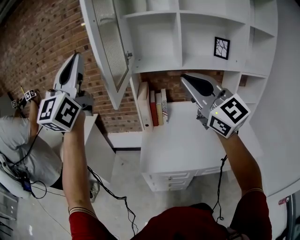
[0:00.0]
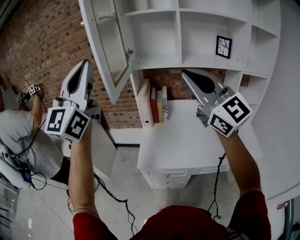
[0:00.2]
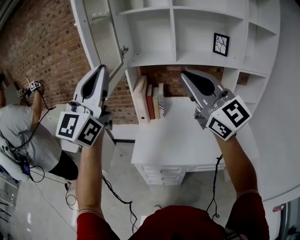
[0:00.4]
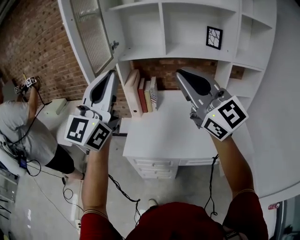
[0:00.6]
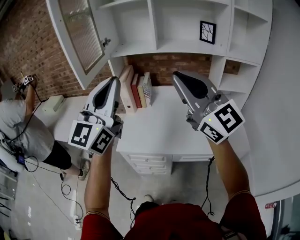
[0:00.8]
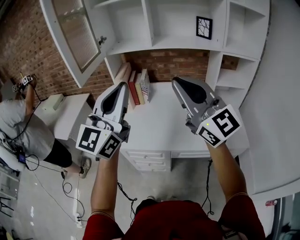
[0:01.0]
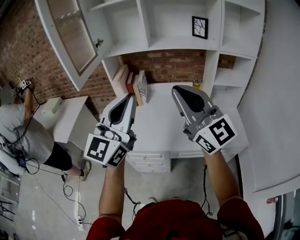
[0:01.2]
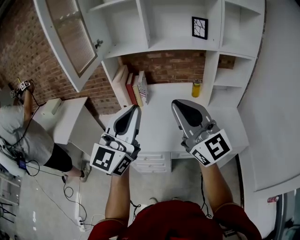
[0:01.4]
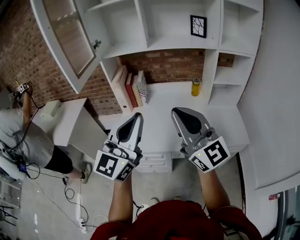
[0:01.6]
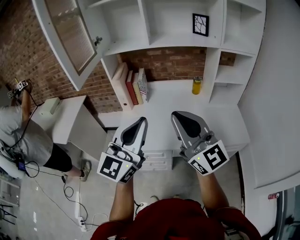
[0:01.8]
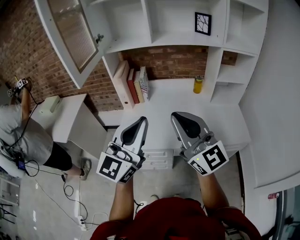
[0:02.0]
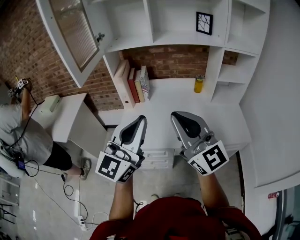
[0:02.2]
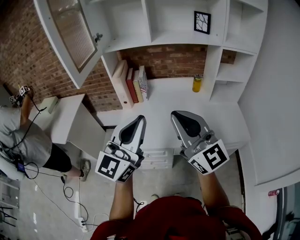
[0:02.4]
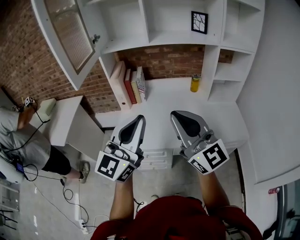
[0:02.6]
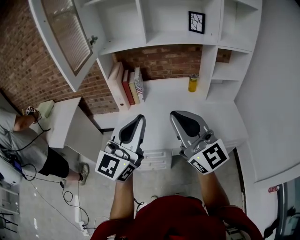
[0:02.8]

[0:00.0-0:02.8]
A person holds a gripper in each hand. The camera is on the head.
0:00.0 to 0:01.4: The right gripper travels to the right, backward and downward by approximately 20 cm. Meanwhile the left gripper heads to the right, downward and backward, covering about 40 cm, and turns by roughly 20 degrees.
0:01.4 to 0:02.8: The right gripper changes place by some 5 cm; the left gripper shifts by roughly 5 cm.

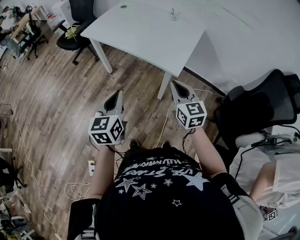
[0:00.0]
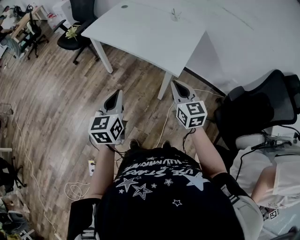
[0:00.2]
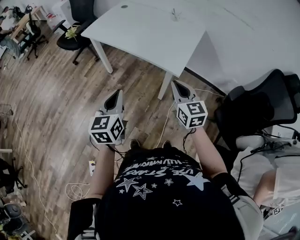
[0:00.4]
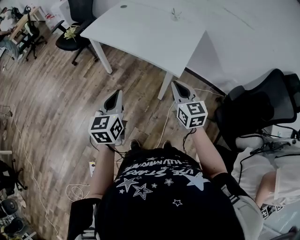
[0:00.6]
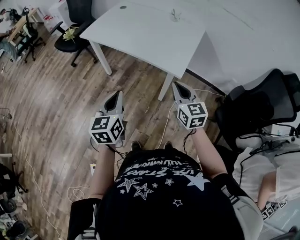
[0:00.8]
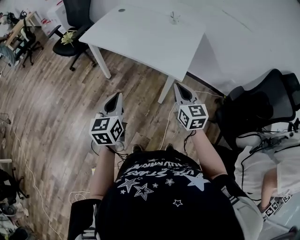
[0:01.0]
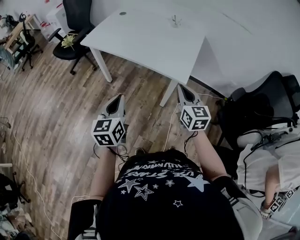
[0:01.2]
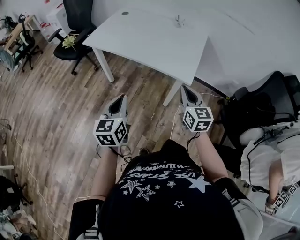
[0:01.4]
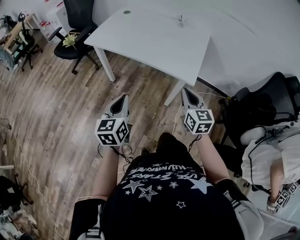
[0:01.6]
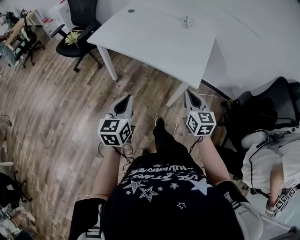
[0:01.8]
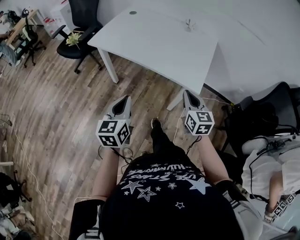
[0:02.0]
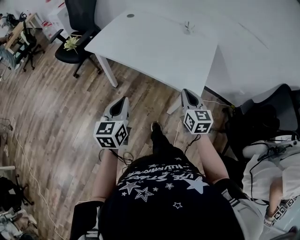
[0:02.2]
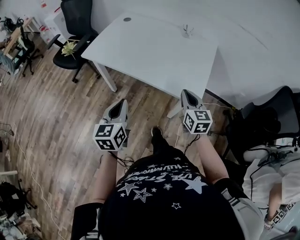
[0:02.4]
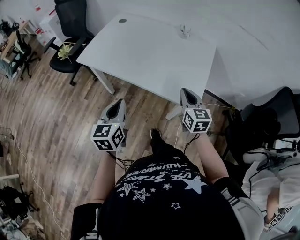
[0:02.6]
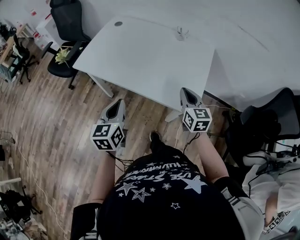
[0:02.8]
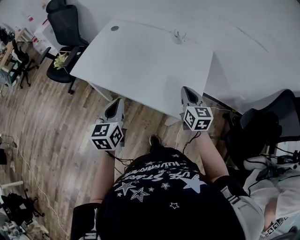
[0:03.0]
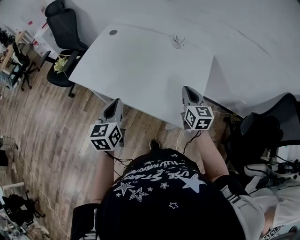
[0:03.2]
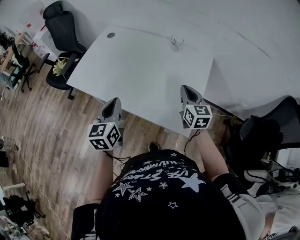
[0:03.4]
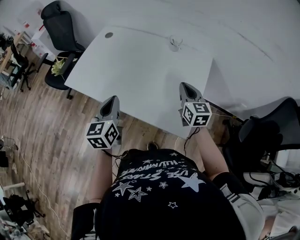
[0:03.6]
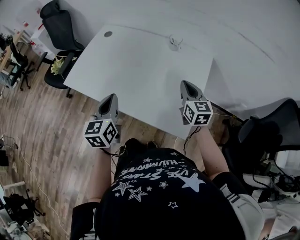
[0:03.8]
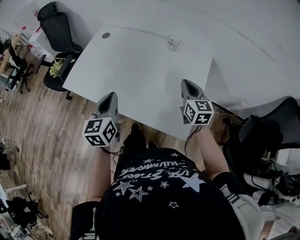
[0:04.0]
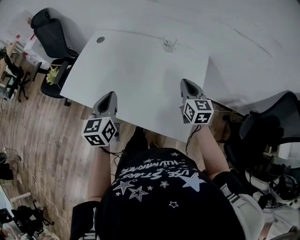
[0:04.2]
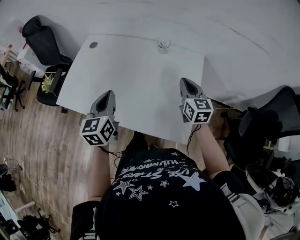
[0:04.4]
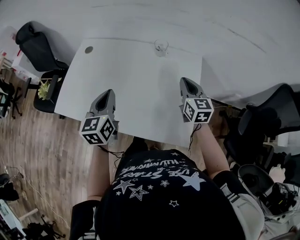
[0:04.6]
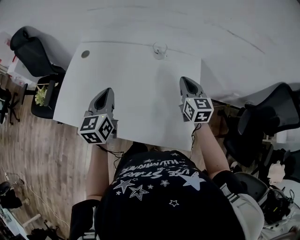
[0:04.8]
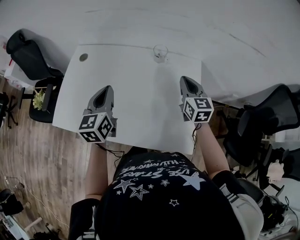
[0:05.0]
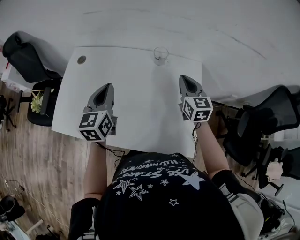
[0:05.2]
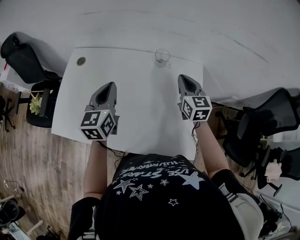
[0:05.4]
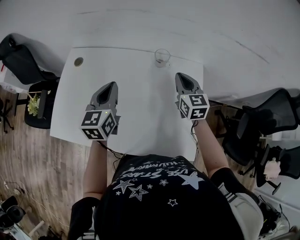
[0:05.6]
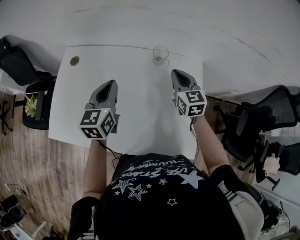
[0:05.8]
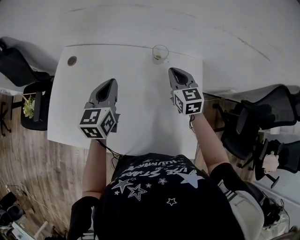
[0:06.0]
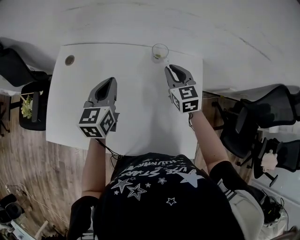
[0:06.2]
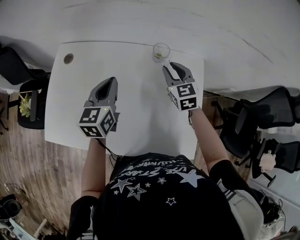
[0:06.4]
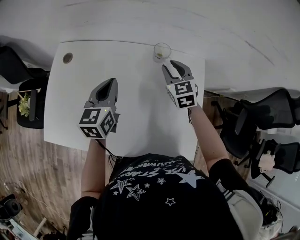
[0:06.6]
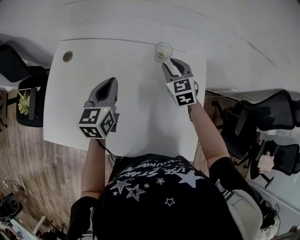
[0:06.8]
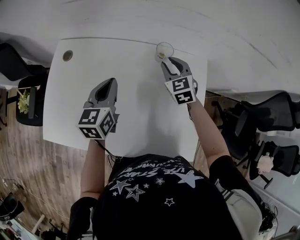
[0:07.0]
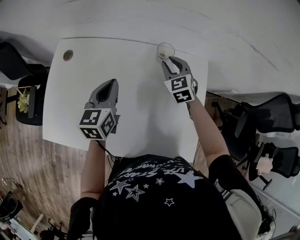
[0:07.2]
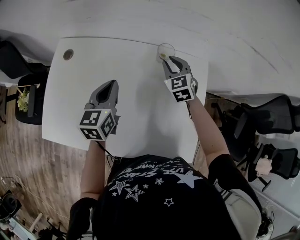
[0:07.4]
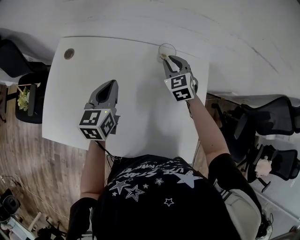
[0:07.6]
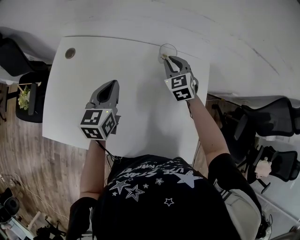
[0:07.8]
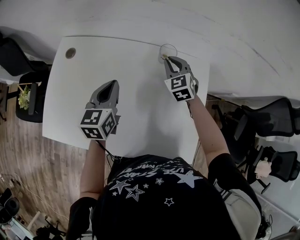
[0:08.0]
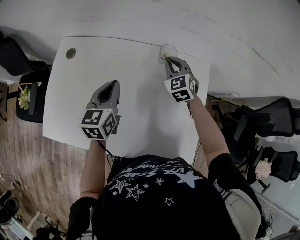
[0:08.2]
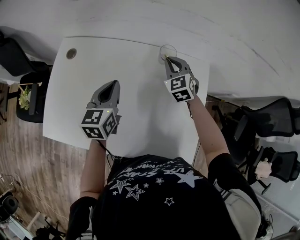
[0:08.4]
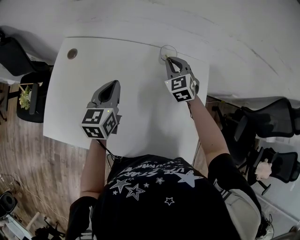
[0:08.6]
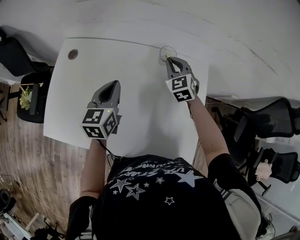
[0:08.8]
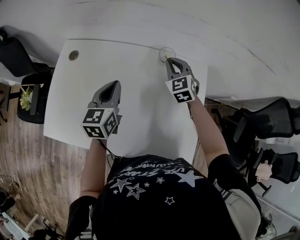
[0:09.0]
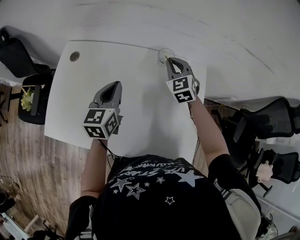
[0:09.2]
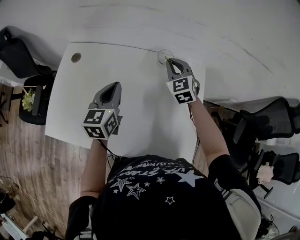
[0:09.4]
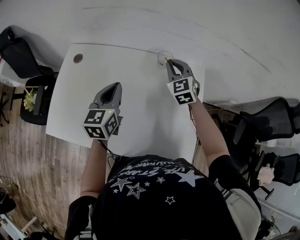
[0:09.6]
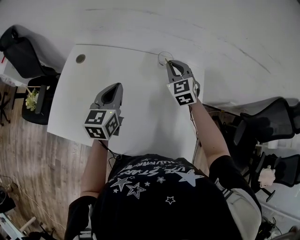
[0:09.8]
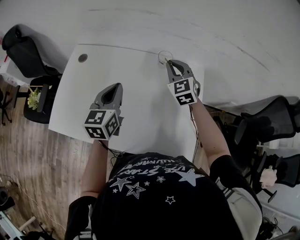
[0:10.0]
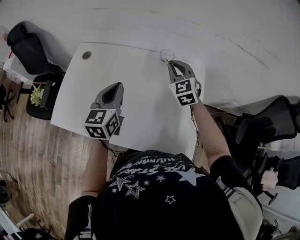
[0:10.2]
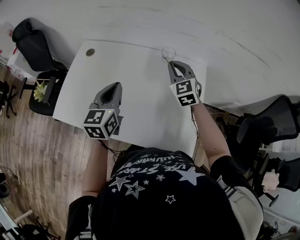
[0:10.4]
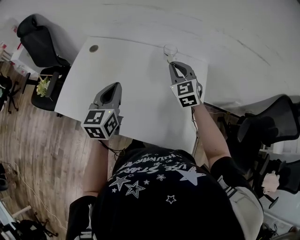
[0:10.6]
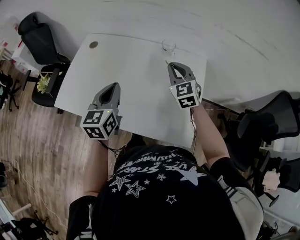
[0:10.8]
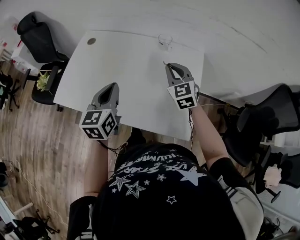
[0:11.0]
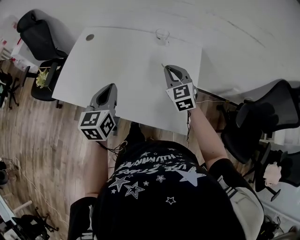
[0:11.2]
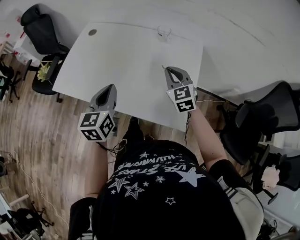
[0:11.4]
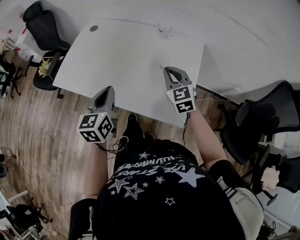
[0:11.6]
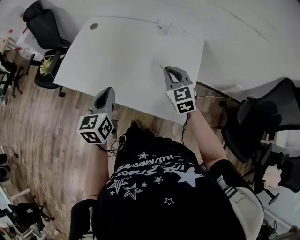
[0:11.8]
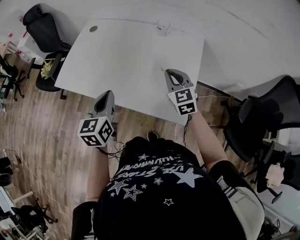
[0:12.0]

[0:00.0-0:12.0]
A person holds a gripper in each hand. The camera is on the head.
0:00.0 to 0:01.6: The right gripper travels to the left by some 5 cm. Meanwhile the left gripper moves to the left and forward, some 10 cm.
0:01.6 to 0:03.0: Both grippers travel together forward, roughly 25 cm.
0:03.0 to 0:04.4: The left gripper travels forward by some 20 cm, while the right gripper goes roughly 15 cm forward and to the right.
0:04.4 to 0:06.0: The right gripper moves forward and to the left, about 20 cm. Meanwhile the left gripper goes some 20 cm forward.
0:06.0 to 0:07.6: The right gripper moves forward and downward, roughly 10 cm, and rotates roughly 20 degrees, while the left gripper changes place by roughly 5 cm.
0:07.6 to 0:09.0: The grippers move only a little.
0:09.0 to 0:10.4: Both grippers move backward and upward, roughly 15 cm.
0:10.4 to 0:12.0: The grippers both shift backward by some 20 cm.

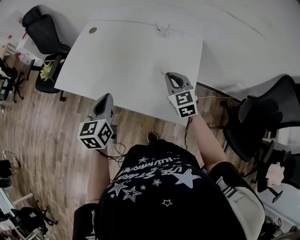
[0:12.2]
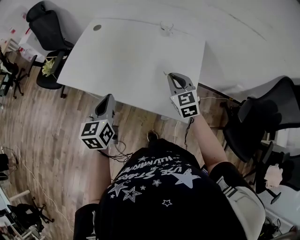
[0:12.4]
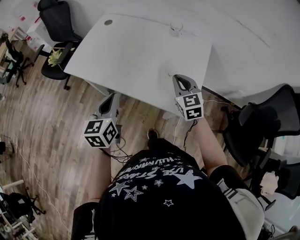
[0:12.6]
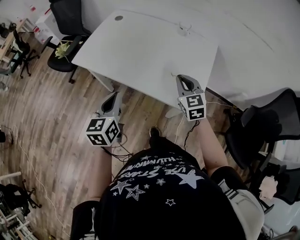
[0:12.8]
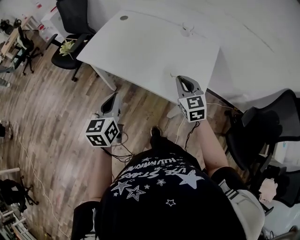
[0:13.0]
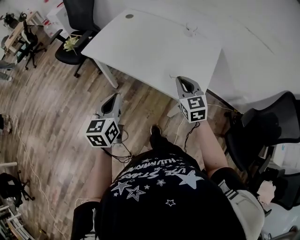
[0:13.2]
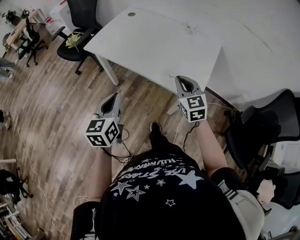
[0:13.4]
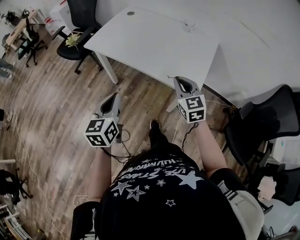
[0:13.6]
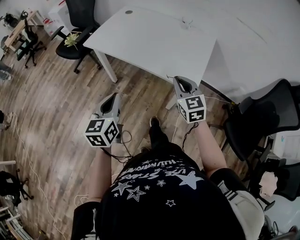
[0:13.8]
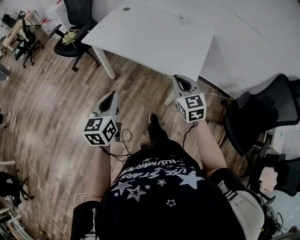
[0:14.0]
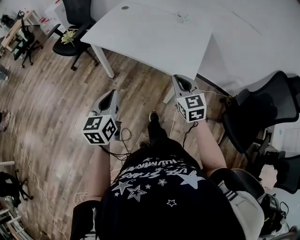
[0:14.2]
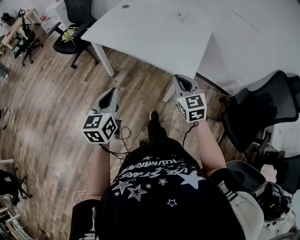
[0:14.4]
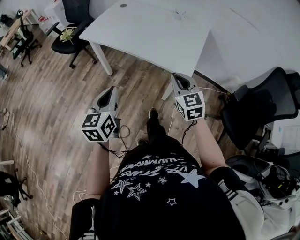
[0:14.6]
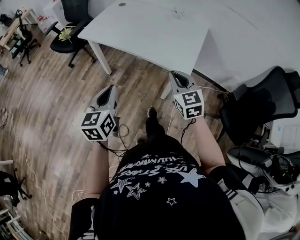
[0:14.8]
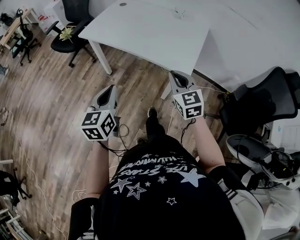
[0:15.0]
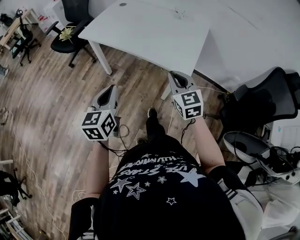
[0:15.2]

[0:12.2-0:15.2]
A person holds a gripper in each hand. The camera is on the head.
0:12.2 to 0:13.8: Both grippers move backward, about 25 cm.
0:13.8 to 0:15.2: Both grippers travel together backward, some 5 cm.

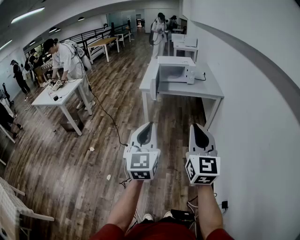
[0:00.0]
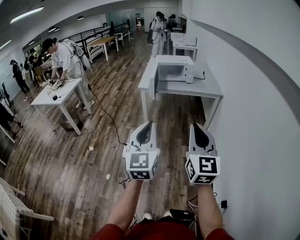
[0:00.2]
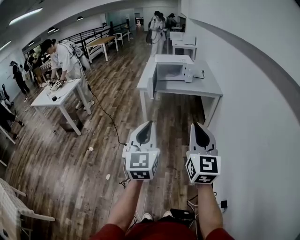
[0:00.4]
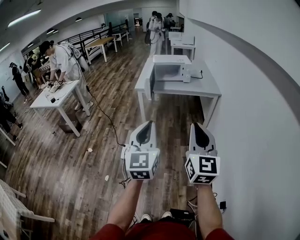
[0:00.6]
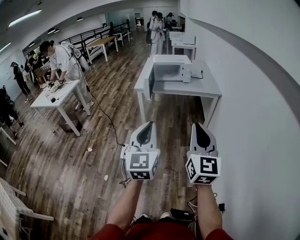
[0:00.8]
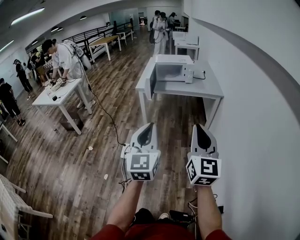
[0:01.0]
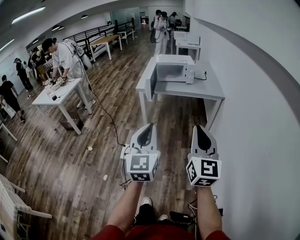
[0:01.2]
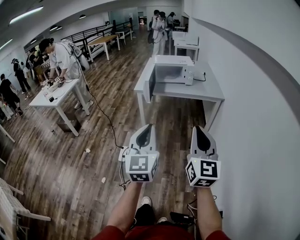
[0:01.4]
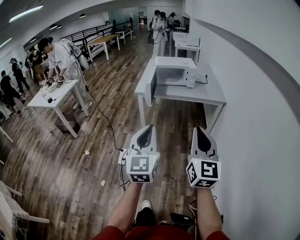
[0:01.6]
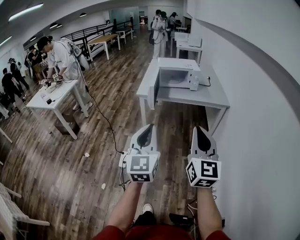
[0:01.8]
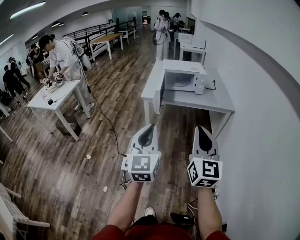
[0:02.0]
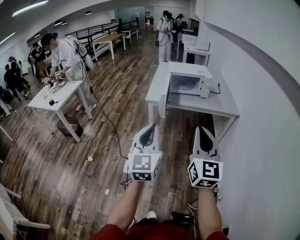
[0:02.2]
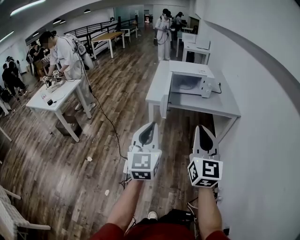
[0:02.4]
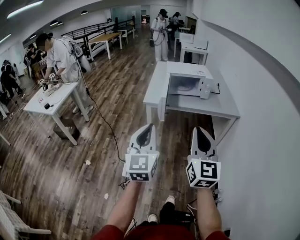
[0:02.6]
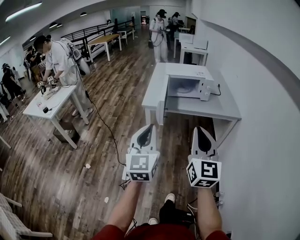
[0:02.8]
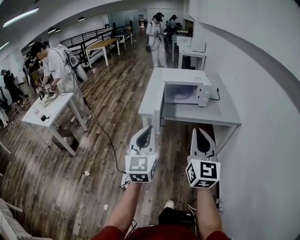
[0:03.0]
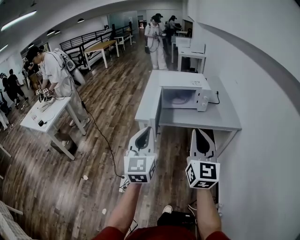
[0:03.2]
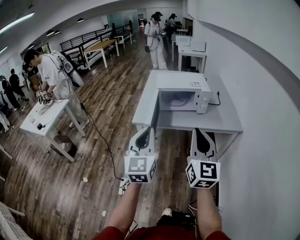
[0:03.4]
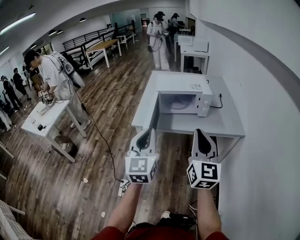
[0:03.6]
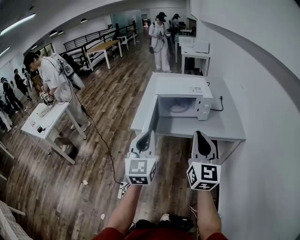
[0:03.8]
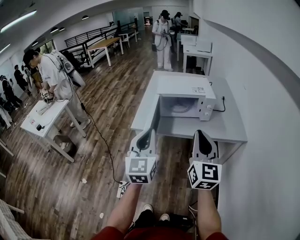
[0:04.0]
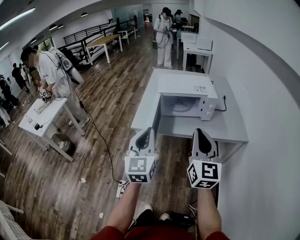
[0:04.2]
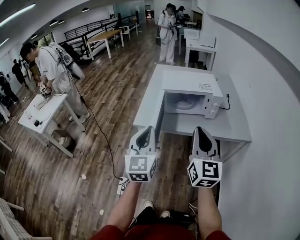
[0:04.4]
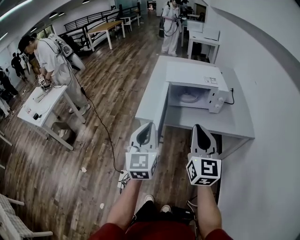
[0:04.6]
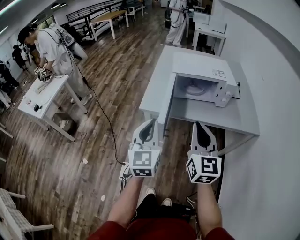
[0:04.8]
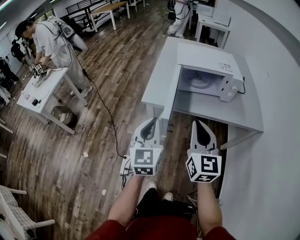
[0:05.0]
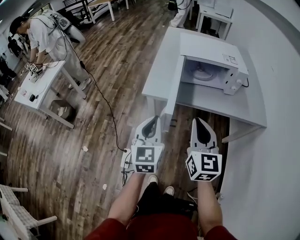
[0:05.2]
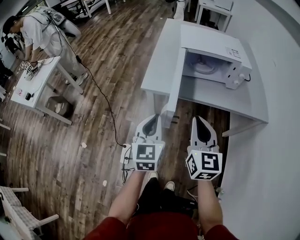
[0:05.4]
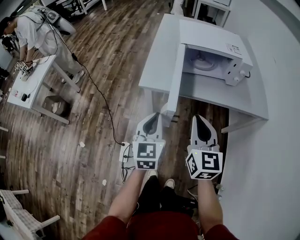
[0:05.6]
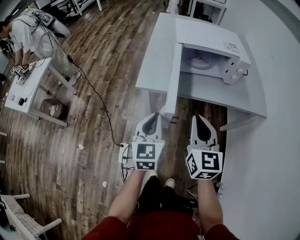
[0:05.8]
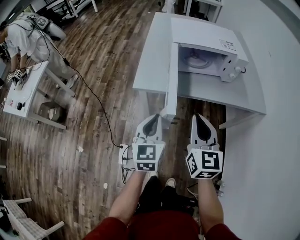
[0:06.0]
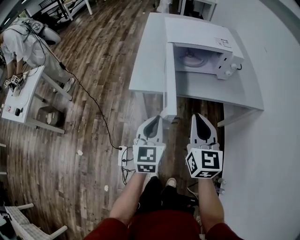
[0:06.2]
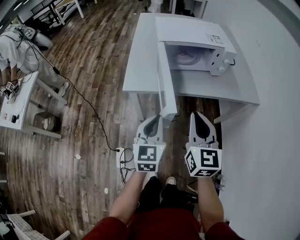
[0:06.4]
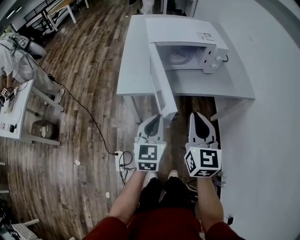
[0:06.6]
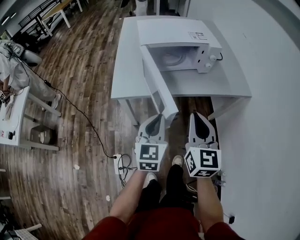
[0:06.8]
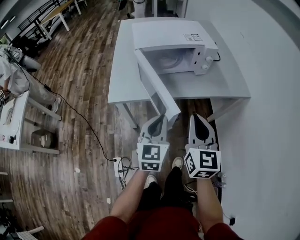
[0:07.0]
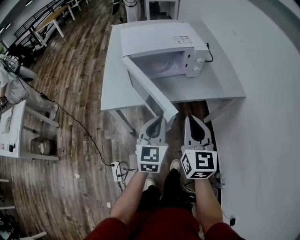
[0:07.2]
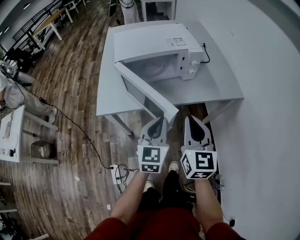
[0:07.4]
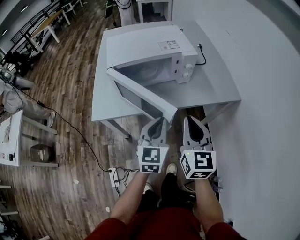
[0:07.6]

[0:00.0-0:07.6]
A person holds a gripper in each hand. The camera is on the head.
0:00.0 to 0:01.6: The right gripper moves forward and to the right, about 15 cm. Meanwhile the left gripper heads forward, covering roughly 10 cm.
0:01.6 to 0:03.0: Both grippers move forward, roughly 25 cm.
0:03.0 to 0:04.6: Both grippers move forward, some 25 cm.
0:04.6 to 0:06.0: The right gripper goes about 15 cm downward and forward. Meanwhile the left gripper is displaced downward by some 15 cm.
0:06.0 to 0:07.6: Both grippers move to the right and forward, roughly 20 cm.
